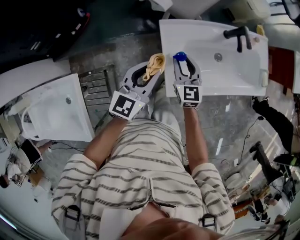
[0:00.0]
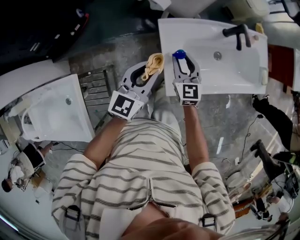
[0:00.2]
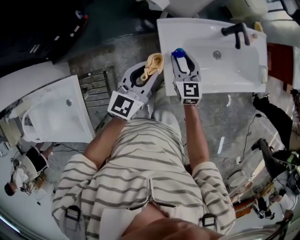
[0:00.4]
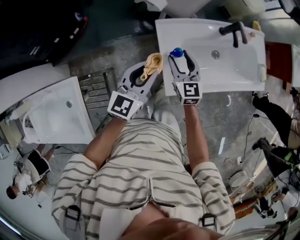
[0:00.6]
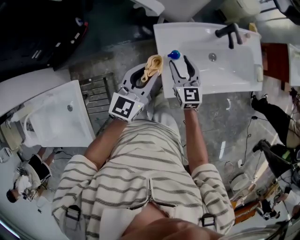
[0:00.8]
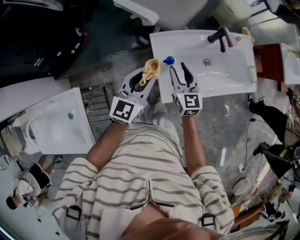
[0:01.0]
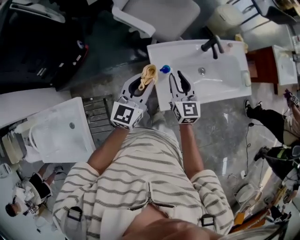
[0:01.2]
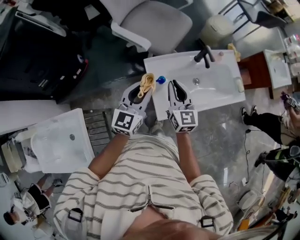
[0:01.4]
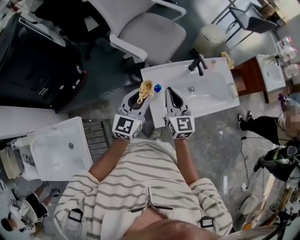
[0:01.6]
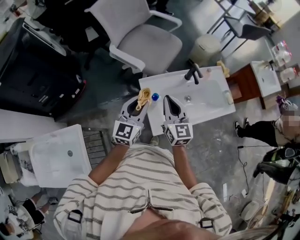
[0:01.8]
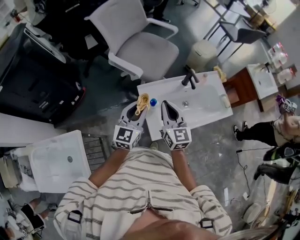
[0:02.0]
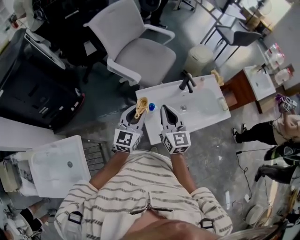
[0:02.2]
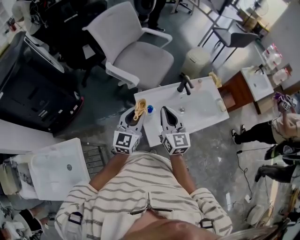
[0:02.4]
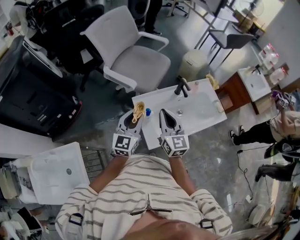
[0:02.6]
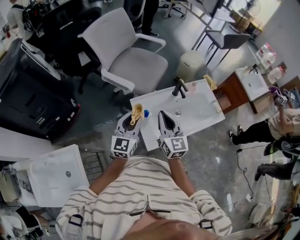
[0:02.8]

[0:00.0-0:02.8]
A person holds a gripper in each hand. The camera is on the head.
0:00.0 to 0:01.4: The right gripper shifts about 15 cm upward, and closes up, while the left gripper goes about 10 cm upward.
0:01.4 to 0:02.8: The right gripper moves upward, roughly 10 cm.

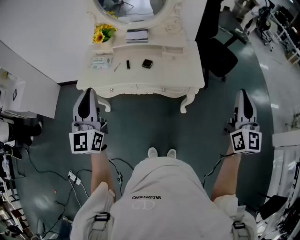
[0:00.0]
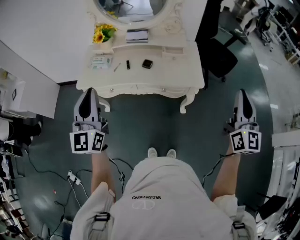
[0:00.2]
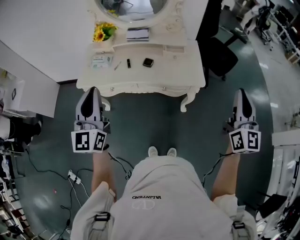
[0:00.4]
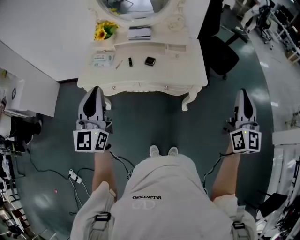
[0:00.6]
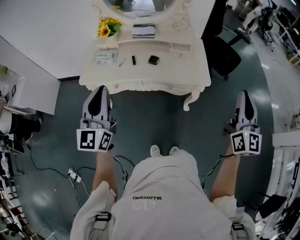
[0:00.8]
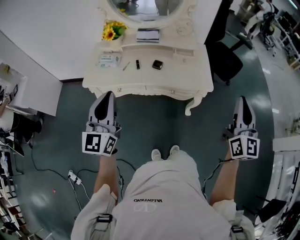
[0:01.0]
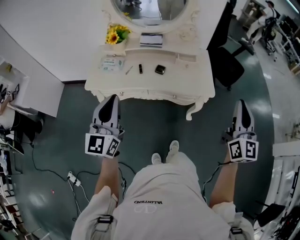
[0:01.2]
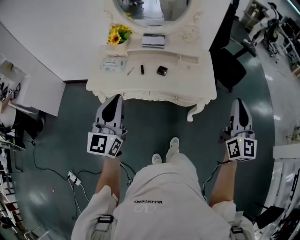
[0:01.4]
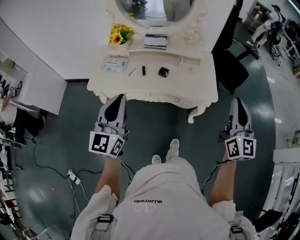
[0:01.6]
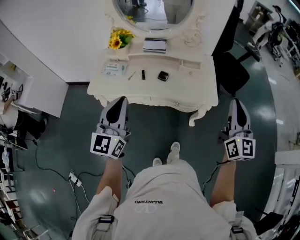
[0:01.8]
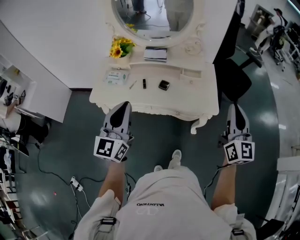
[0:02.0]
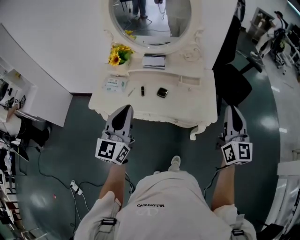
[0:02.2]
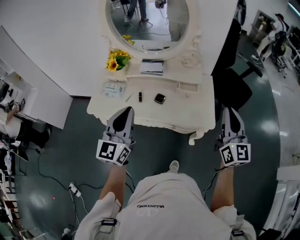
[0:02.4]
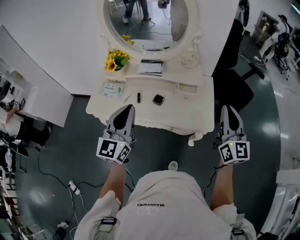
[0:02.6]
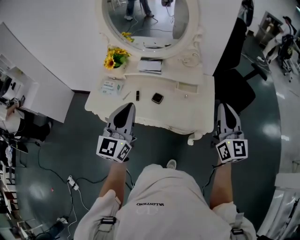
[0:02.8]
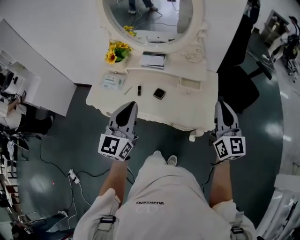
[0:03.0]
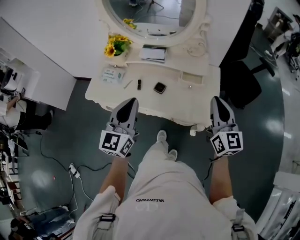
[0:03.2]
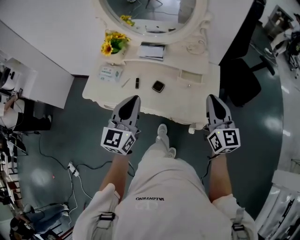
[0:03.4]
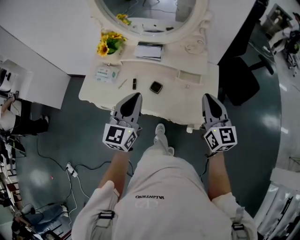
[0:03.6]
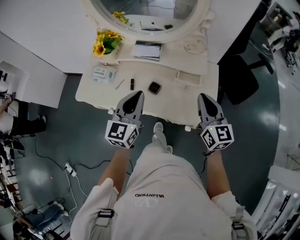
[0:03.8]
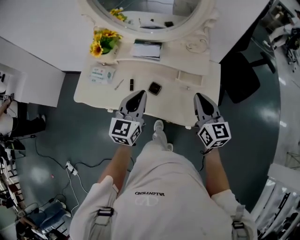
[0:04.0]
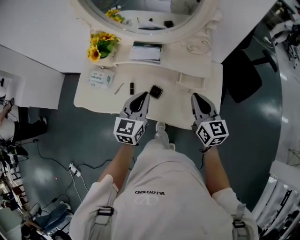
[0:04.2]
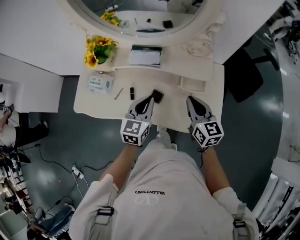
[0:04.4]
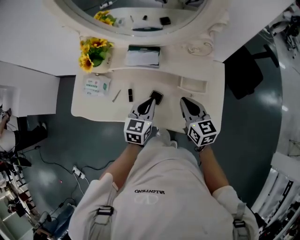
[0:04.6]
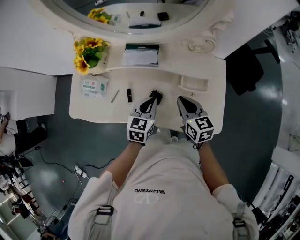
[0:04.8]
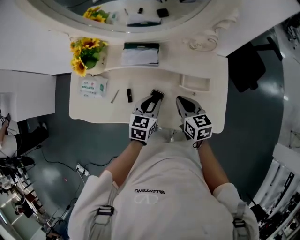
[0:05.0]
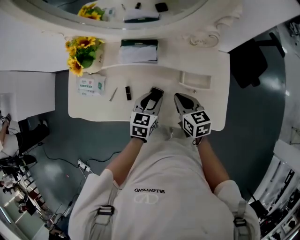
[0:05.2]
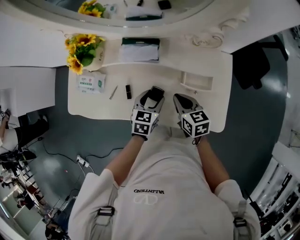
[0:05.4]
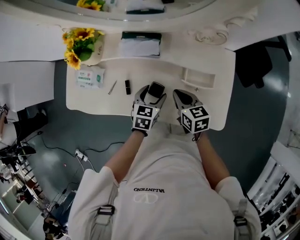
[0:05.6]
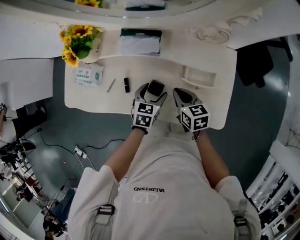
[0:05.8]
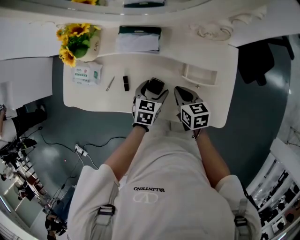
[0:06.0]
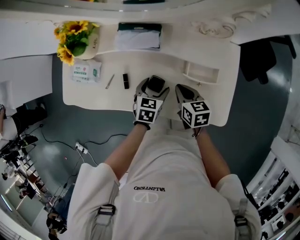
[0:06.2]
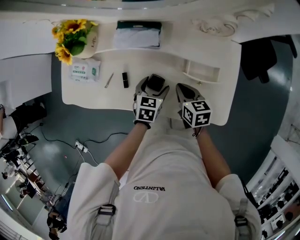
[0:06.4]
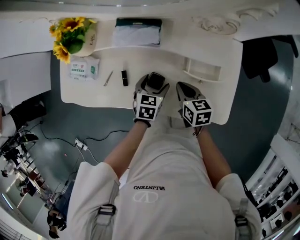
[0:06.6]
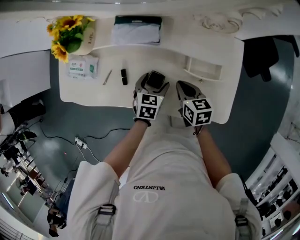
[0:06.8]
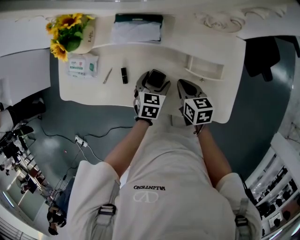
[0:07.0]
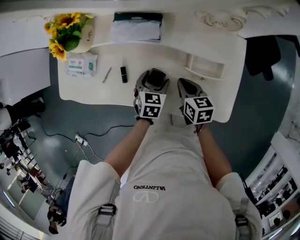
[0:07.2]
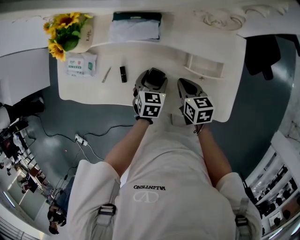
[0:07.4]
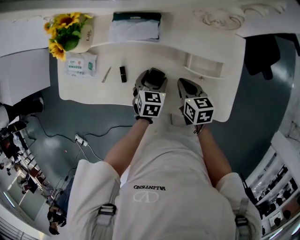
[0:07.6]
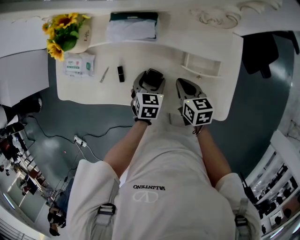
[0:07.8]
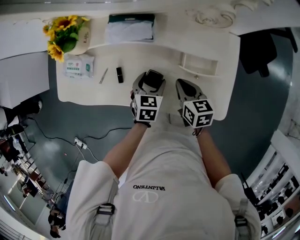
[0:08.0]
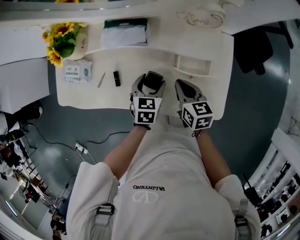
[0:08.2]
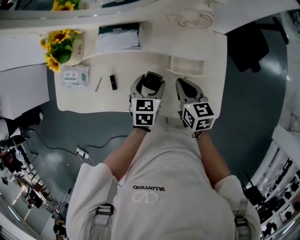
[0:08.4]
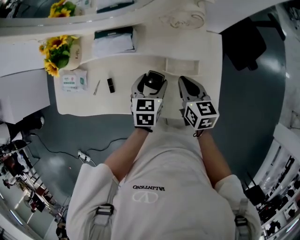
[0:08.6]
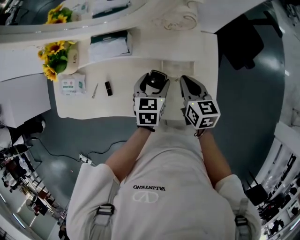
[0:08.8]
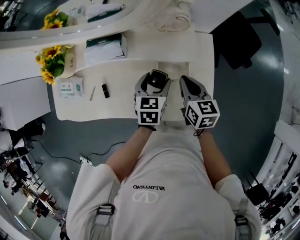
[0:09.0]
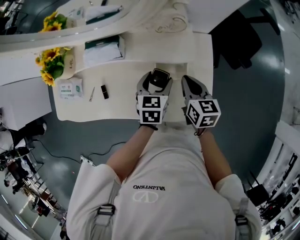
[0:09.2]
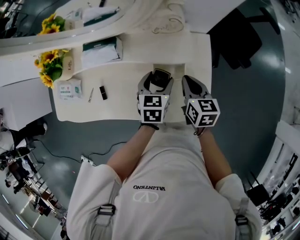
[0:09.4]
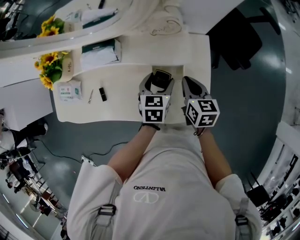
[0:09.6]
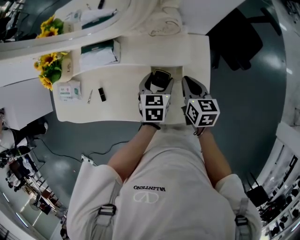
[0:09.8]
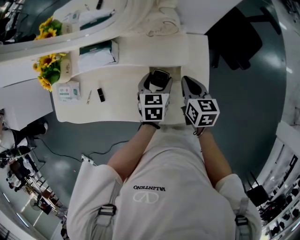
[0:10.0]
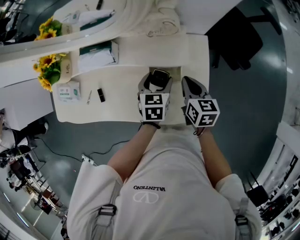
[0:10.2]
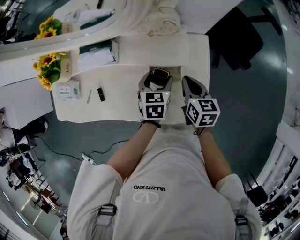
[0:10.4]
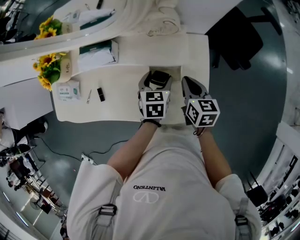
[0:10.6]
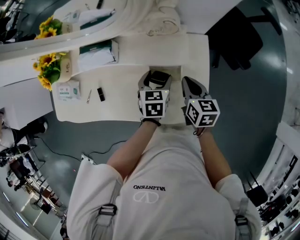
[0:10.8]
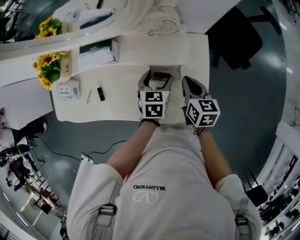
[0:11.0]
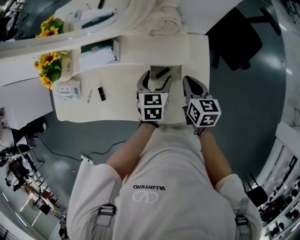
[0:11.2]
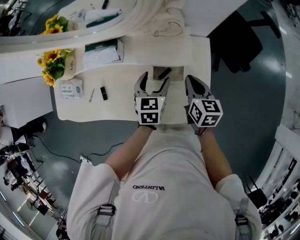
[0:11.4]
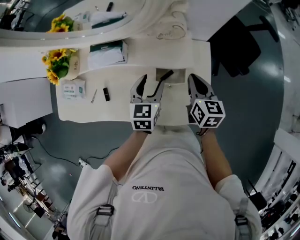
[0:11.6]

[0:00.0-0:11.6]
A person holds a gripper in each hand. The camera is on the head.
0:00.0 to 0:01.4: The right gripper travels to the left by some 10 cm.
0:01.4 to 0:02.8: The left gripper heads forward and to the right, covering roughly 20 cm. Meanwhile the right gripper travels forward by roughly 20 cm.
0:02.8 to 0:04.4: The right gripper heads downward, forward and to the left, covering some 30 cm, and turns by approximately 30 degrees. Meanwhile the left gripper goes about 30 cm downward and forward, and turns by some 30 degrees.
0:04.4 to 0:05.8: The right gripper heads downward and to the left, covering about 15 cm, and turns by some 30 degrees; the left gripper goes roughly 15 cm downward, rotates about 30 degrees, and opens.
0:05.8 to 0:07.2: The grippers stay close to where they were, moving slightly.
0:07.2 to 0:08.8: Both grippers travel together to the right and upward, approximately 15 cm.
0:08.8 to 0:10.2: Both grippers move to the right, roughly 5 cm.
0:10.2 to 0:11.6: The left gripper moves upward and to the left, some 10 cm; the right gripper goes roughly 5 cm upward.

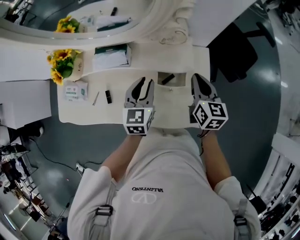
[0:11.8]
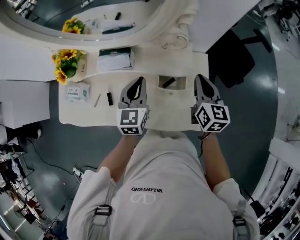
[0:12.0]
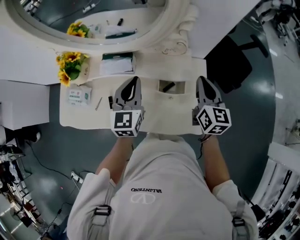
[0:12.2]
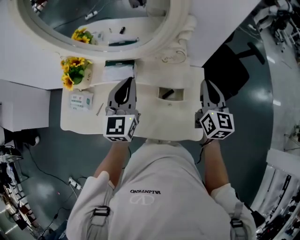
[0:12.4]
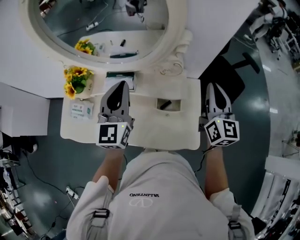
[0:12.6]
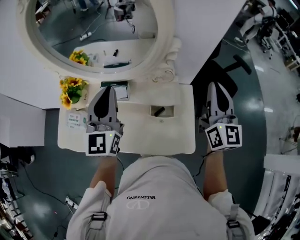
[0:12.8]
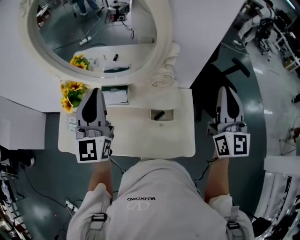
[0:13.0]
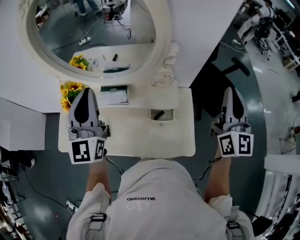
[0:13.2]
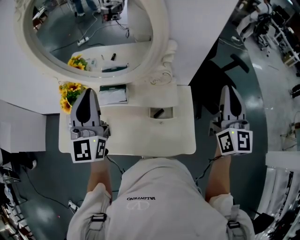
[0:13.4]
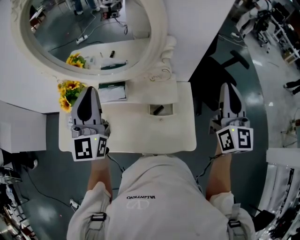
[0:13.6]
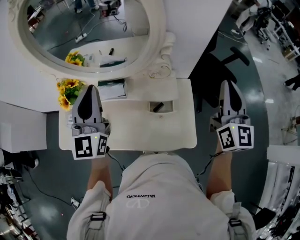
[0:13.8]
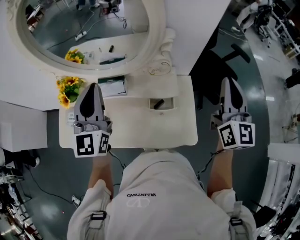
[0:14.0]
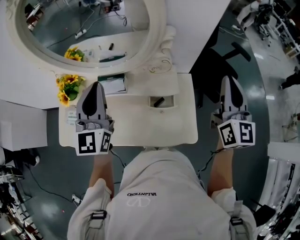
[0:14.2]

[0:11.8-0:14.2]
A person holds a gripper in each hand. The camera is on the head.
0:11.8 to 0:13.0: Both grippers travel together upward, some 30 cm. The left gripper tips its fingers upward by some 40 degrees. The right gripper points its fingers approximately 30 degrees further upward.
0:13.0 to 0:14.2: The grippers make only small movements.

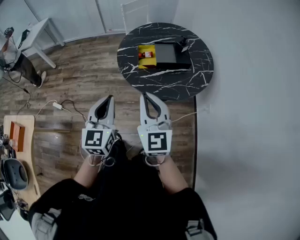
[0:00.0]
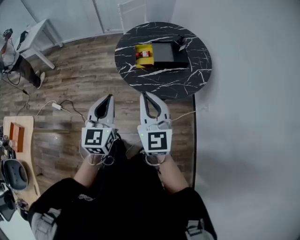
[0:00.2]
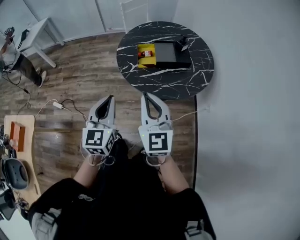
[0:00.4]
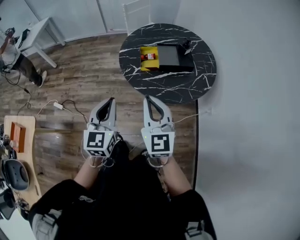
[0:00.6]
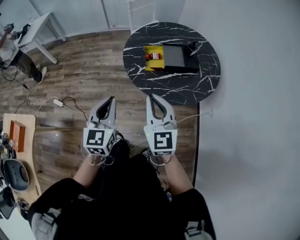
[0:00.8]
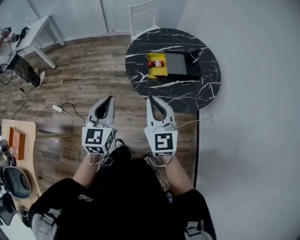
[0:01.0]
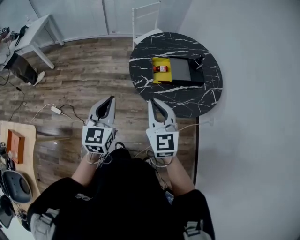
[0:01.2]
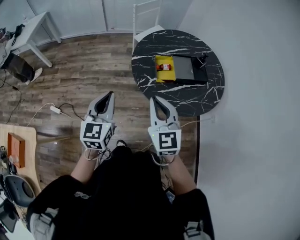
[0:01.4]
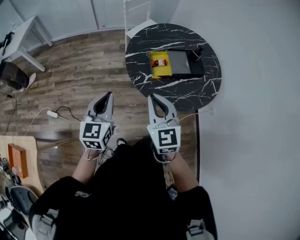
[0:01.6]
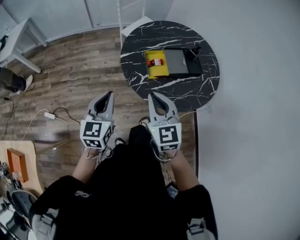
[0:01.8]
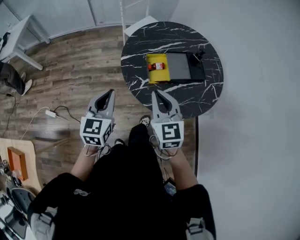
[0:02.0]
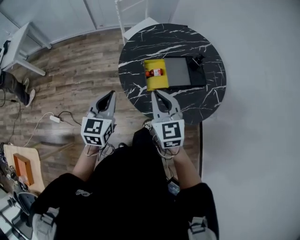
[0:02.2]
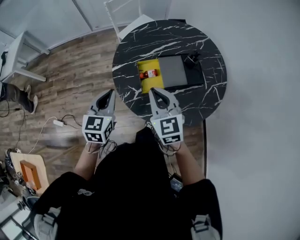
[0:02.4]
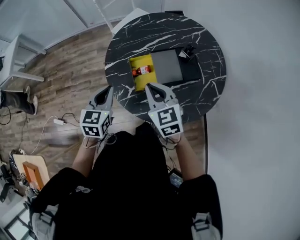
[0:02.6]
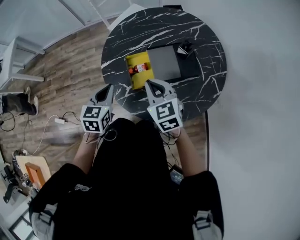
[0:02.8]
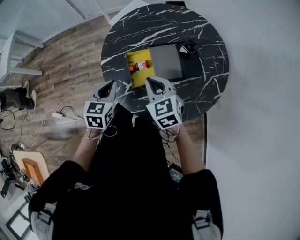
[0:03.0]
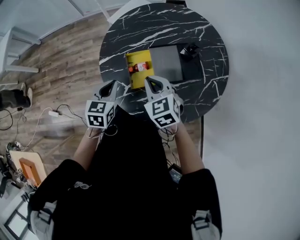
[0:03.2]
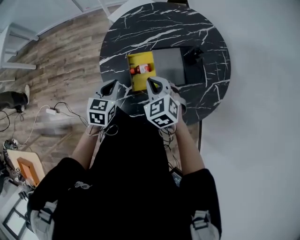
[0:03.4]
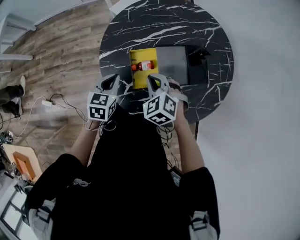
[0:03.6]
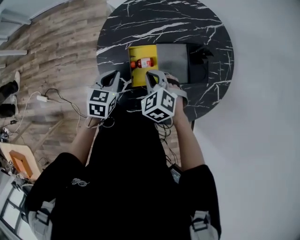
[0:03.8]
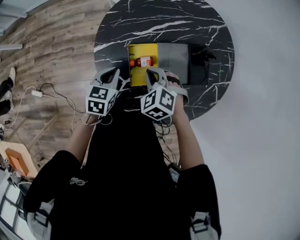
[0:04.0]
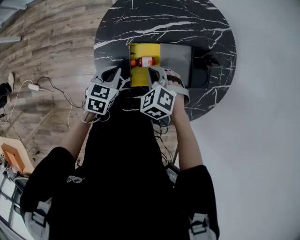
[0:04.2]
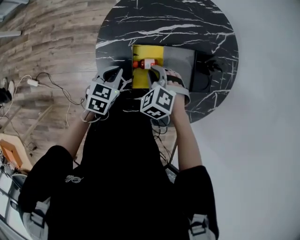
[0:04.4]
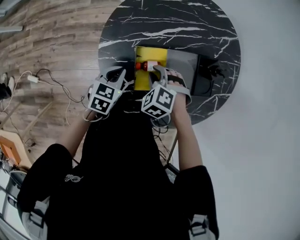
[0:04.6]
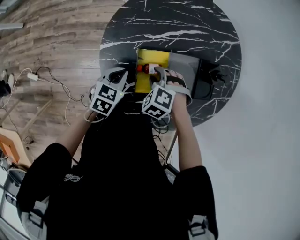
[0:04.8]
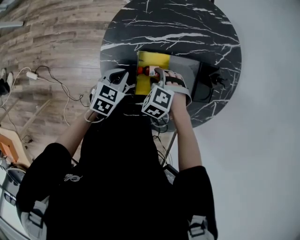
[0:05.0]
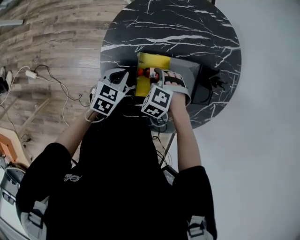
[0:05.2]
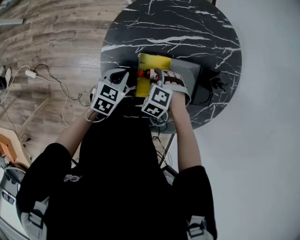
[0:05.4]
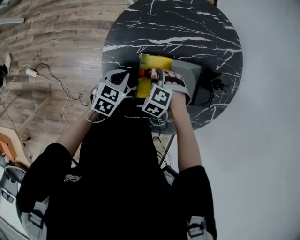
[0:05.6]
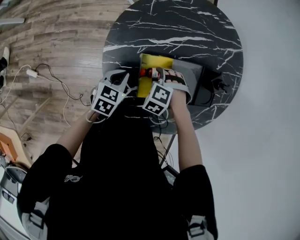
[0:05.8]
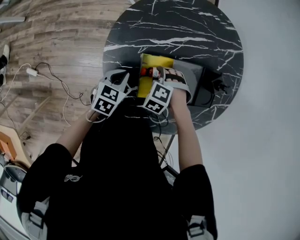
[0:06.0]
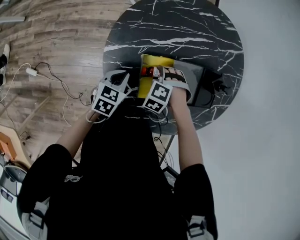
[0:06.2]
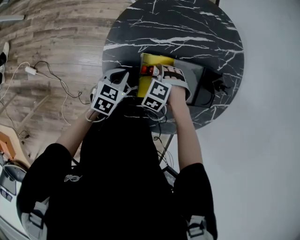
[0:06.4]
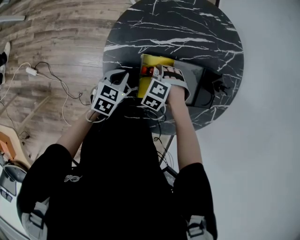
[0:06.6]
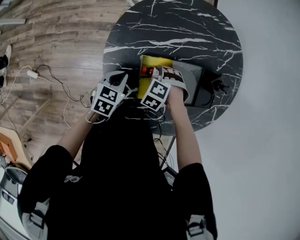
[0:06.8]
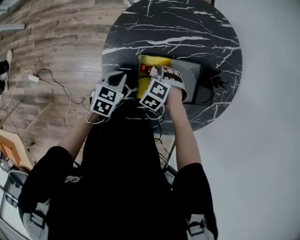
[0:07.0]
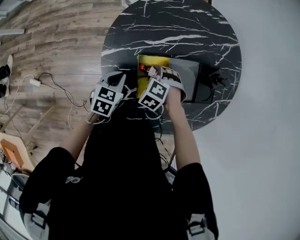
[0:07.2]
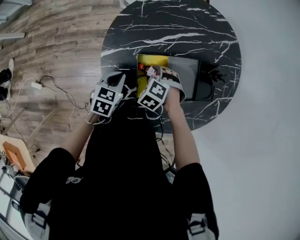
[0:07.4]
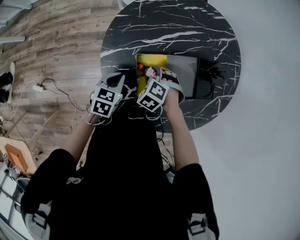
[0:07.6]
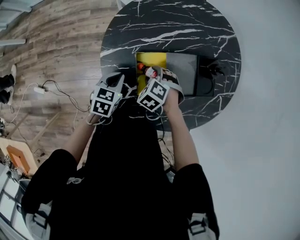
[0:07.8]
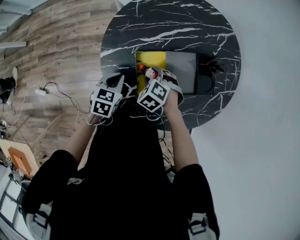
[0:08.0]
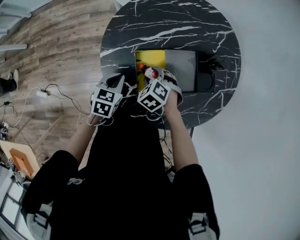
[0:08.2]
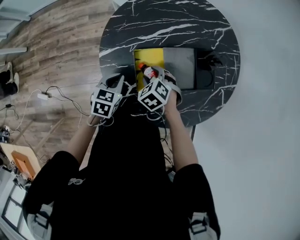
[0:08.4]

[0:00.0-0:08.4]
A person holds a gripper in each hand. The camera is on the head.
0:00.0 to 0:01.4: The grippers both shift to the left and forward by about 20 cm.
0:01.4 to 0:02.8: Both grippers move forward, to the right and downward, roughly 30 cm. The right gripper rotates some 20 degrees; the left gripper rotates about 30 degrees.
0:02.8 to 0:04.2: Both grippers move downward and forward, some 15 cm. The right gripper angles its fingers downward, by some 30 degrees.
0:04.2 to 0:05.6: The right gripper heads downward, covering roughly 10 cm, rotates approximately 30 degrees, and opens up.
0:05.6 to 0:07.0: The grippers make only small movements.
0:07.0 to 0:08.4: The right gripper changes its angle by approximately 30 degrees.
